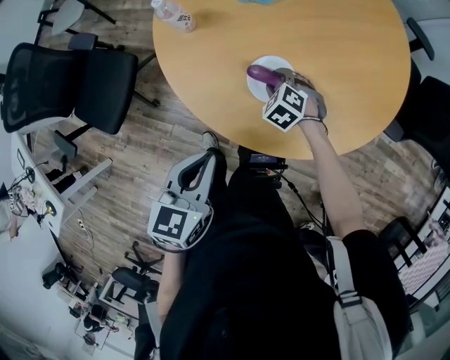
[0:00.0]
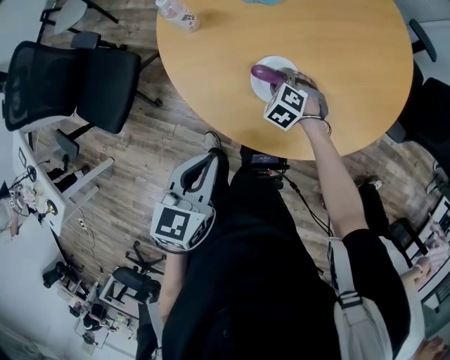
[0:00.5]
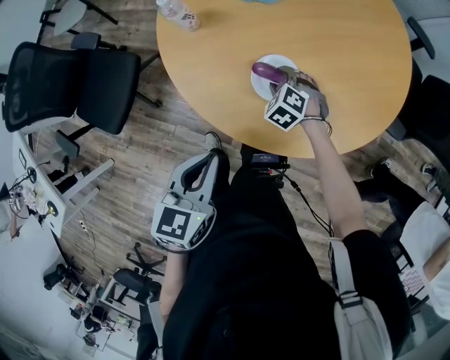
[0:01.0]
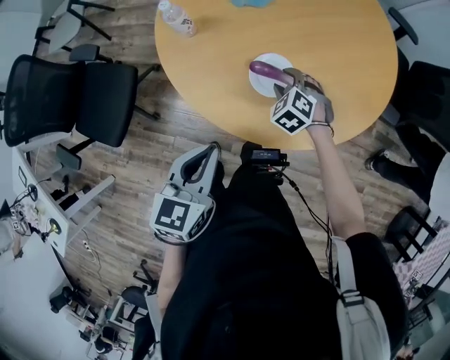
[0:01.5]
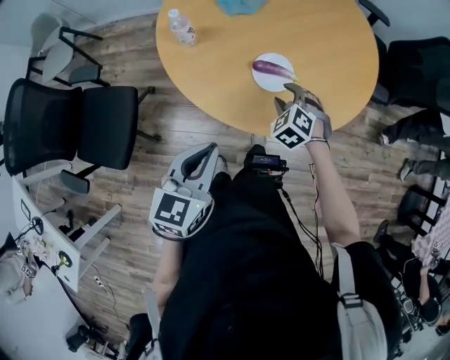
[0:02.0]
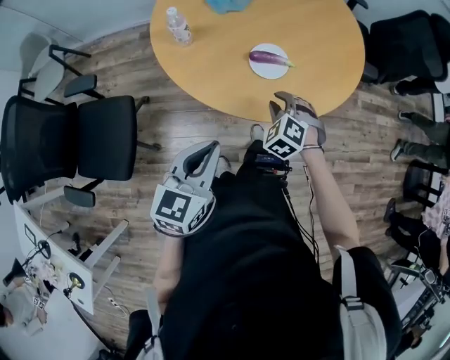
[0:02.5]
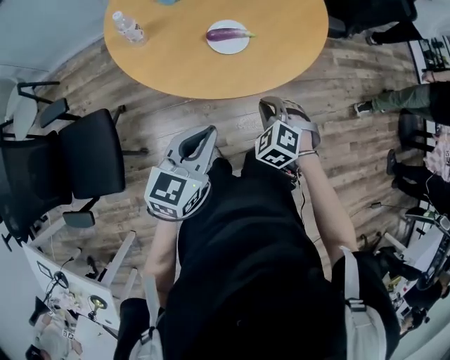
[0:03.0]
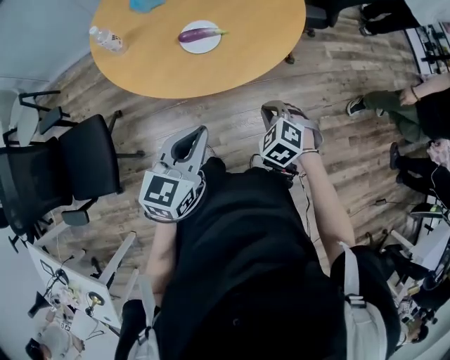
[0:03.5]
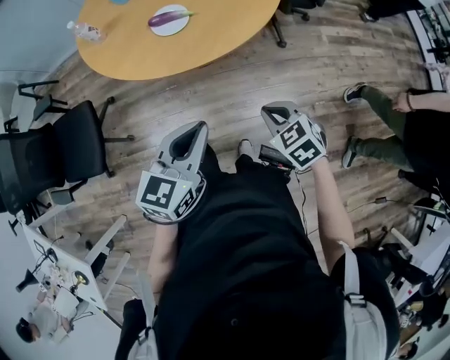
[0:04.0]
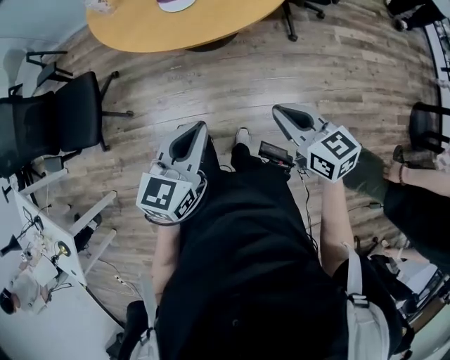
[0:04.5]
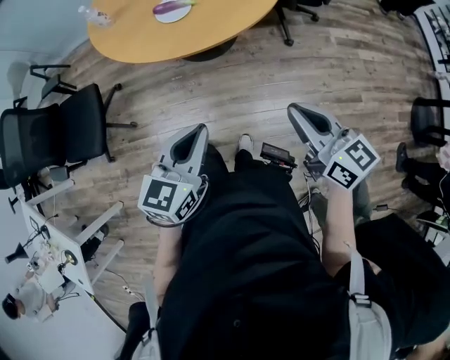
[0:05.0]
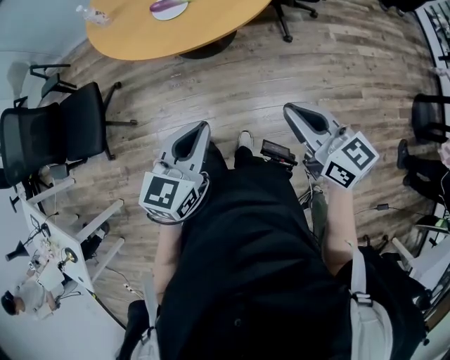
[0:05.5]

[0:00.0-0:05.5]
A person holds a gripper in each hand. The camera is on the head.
0:00.0 to 0:02.0: The left gripper changes place by approximately 10 cm, and rotates some 20 degrees, while the right gripper shifts by about 15 cm, and swivels some 20 degrees.
0:02.0 to 0:03.5: The right gripper travels backward and to the right by roughly 30 cm, and closes. The left gripper heads to the right and backward, covering about 15 cm, and turns by approximately 20 degrees.
0:03.5 to 0:05.5: The left gripper changes place by about 25 cm; the right gripper moves about 30 cm, and tilts its fingers some 50 degrees upward.

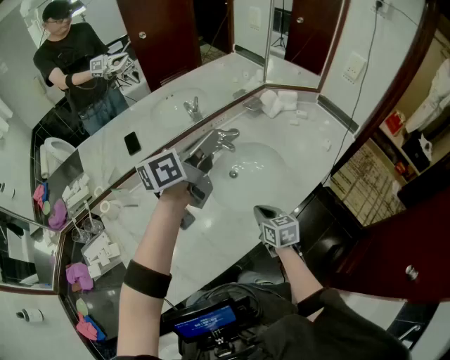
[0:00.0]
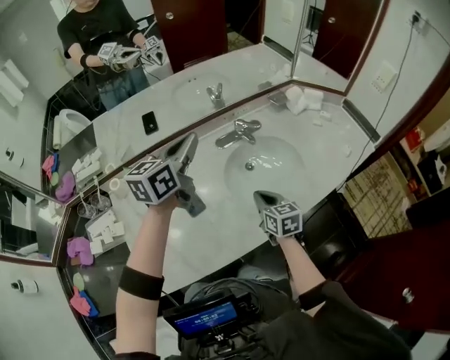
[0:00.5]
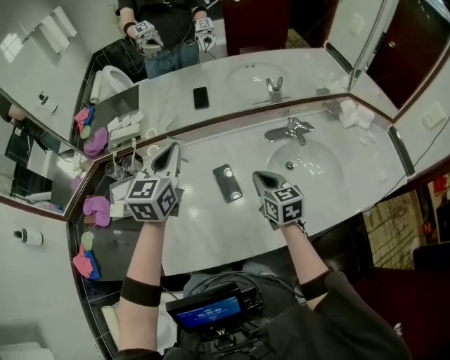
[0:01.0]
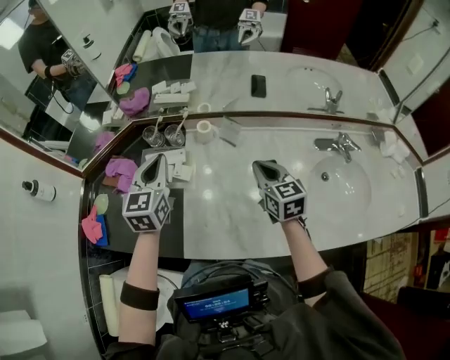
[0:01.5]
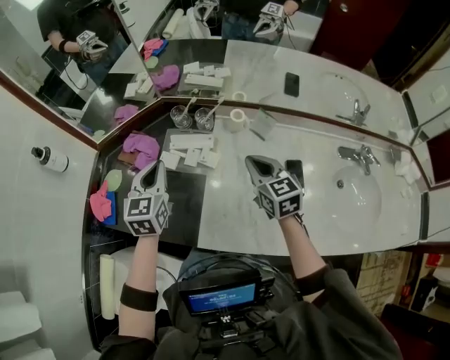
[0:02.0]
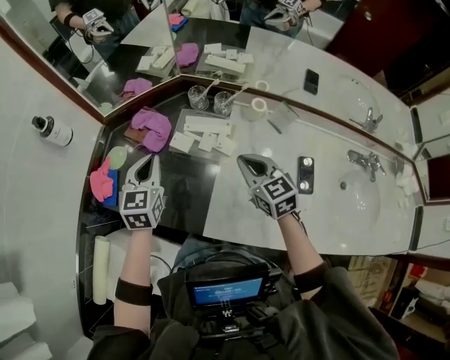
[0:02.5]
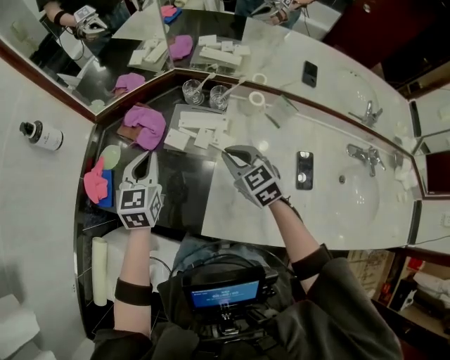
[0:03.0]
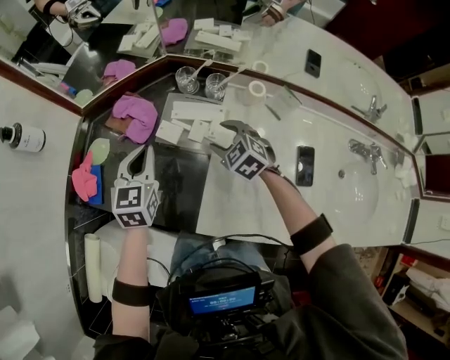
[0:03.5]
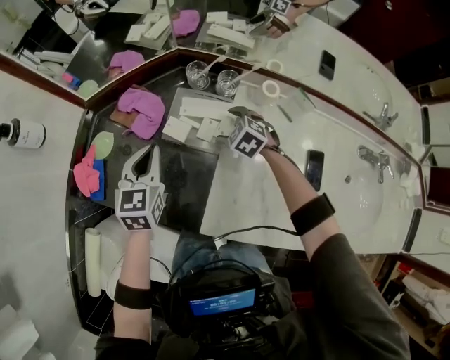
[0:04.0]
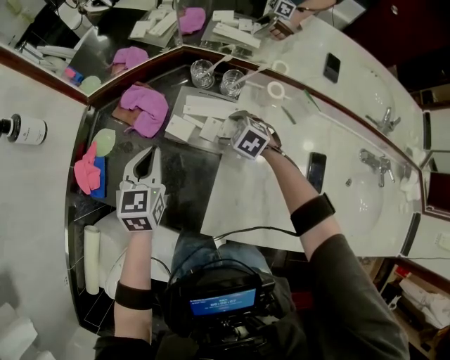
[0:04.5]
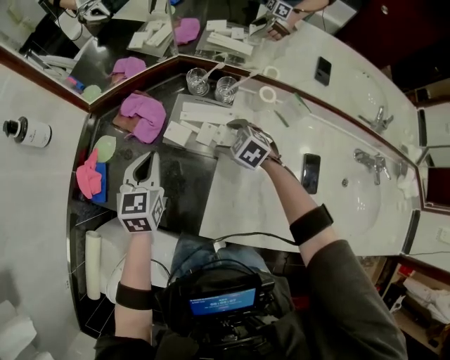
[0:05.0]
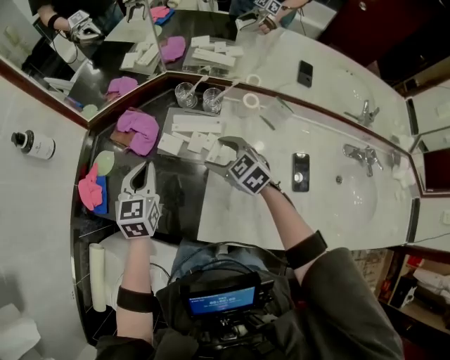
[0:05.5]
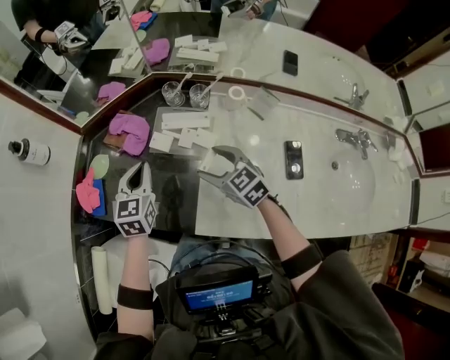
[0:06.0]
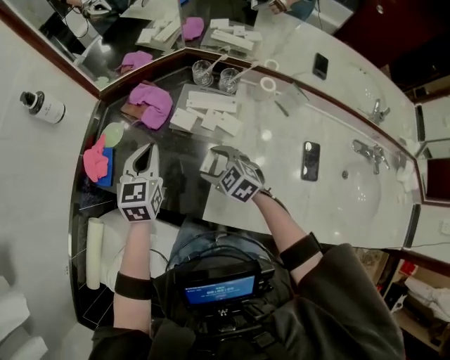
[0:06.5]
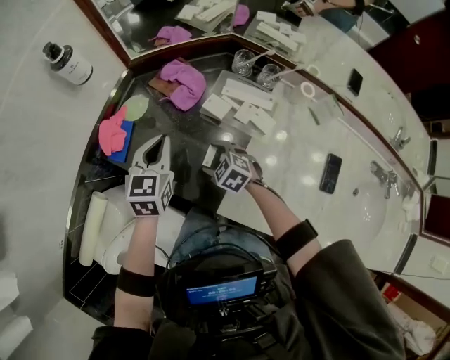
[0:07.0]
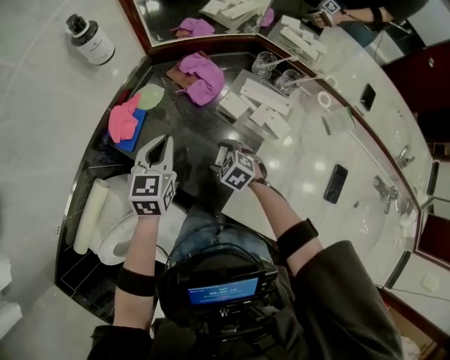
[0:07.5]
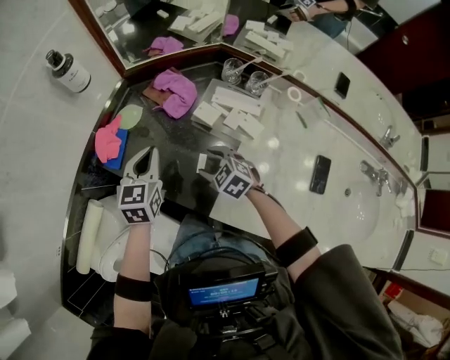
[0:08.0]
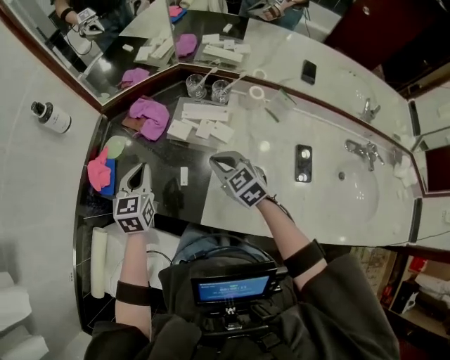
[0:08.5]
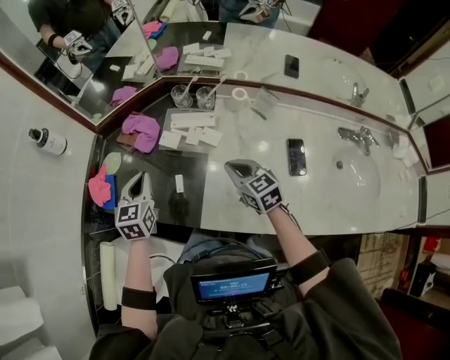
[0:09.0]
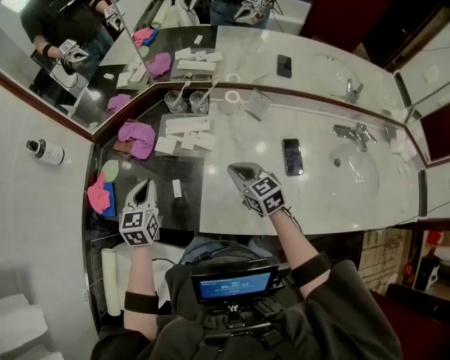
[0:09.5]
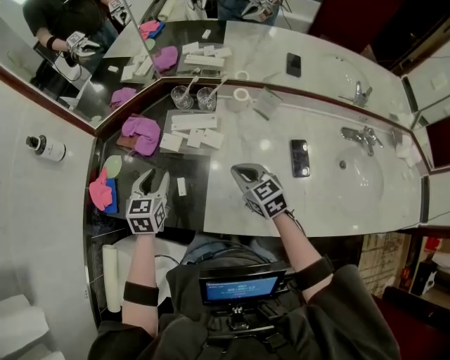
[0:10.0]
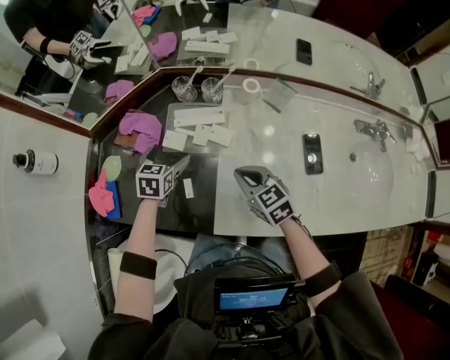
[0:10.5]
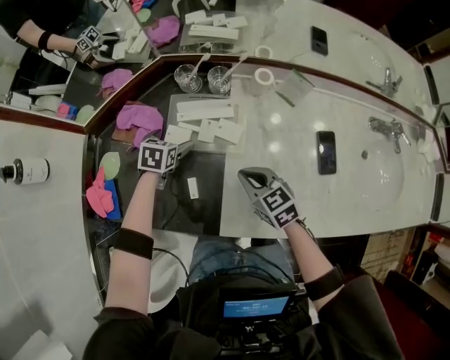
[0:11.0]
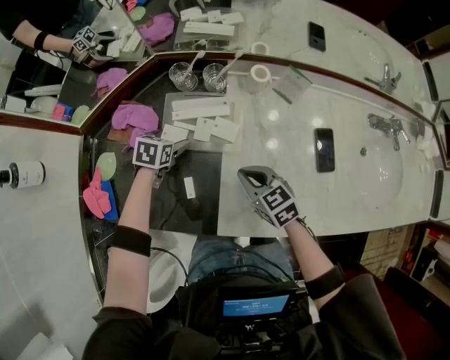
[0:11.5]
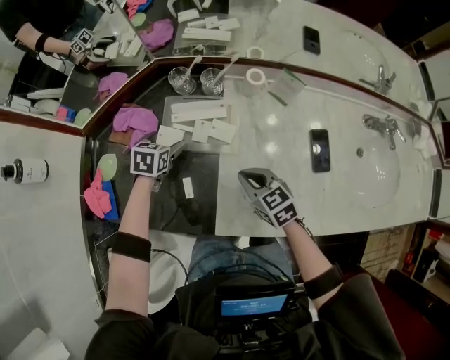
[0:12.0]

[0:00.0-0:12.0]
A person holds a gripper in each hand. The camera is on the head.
0:00.0 to 0:02.0: Both grippers are carried some 60 cm. The right gripper rotates some 50 degrees; the left gripper changes its angle by roughly 80 degrees.
0:02.0 to 0:04.0: The left gripper moves downward and to the left, approximately 10 cm. Meanwhile the right gripper heads downward, forward and to the left, covering about 30 cm, tilts its fingers roughly 40 degrees downward, and opens.
0:04.0 to 0:06.0: The right gripper goes about 20 cm upward and backward, and turns by roughly 30 degrees.
0:06.0 to 0:08.0: The left gripper goes about 15 cm to the left; the right gripper heads to the left and downward, covering about 20 cm, and turns by about 30 degrees.
0:08.0 to 0:10.0: The right gripper moves about 25 cm, turns by approximately 40 degrees, and closes its fingers; the left gripper shifts by some 10 cm.
0:10.0 to 0:12.0: The right gripper is displaced downward by some 10 cm. Meanwhile the left gripper shifts roughly 20 cm downward and forward, rotates about 30 degrees, and opens its fingers.

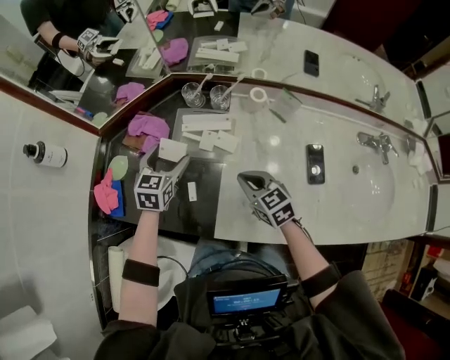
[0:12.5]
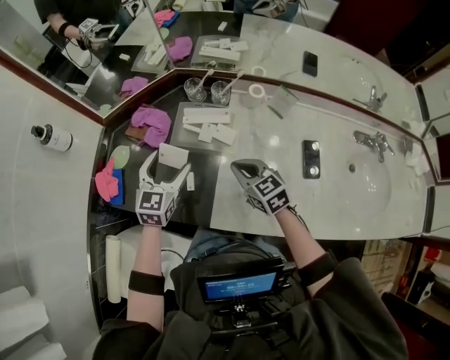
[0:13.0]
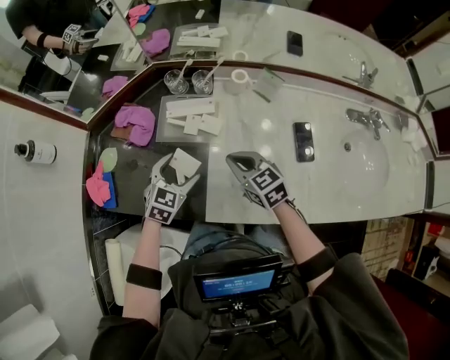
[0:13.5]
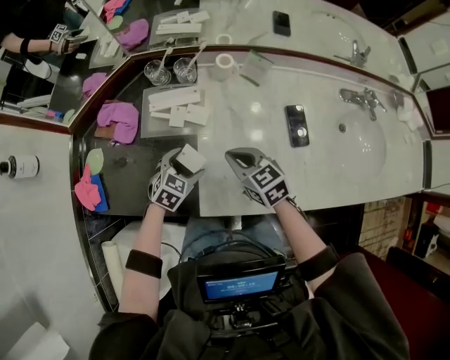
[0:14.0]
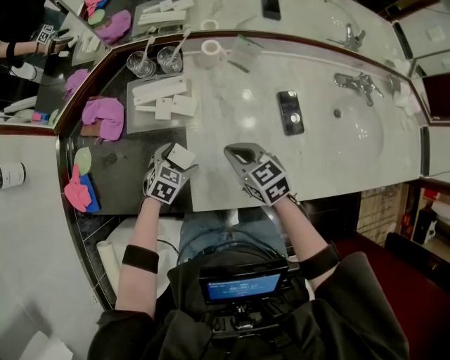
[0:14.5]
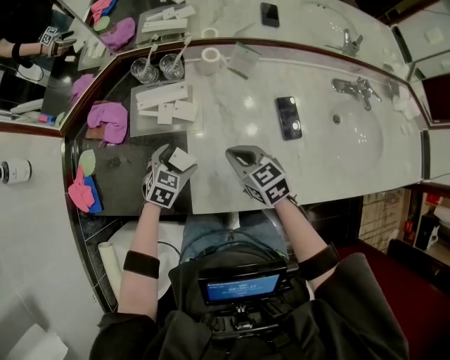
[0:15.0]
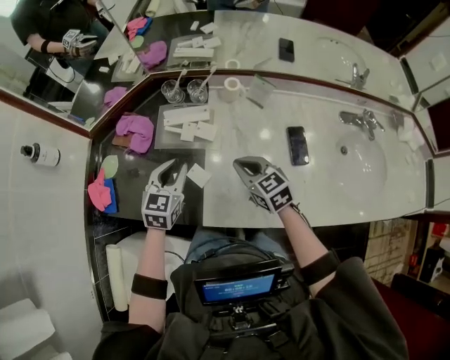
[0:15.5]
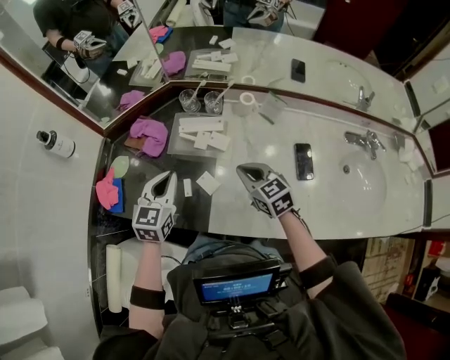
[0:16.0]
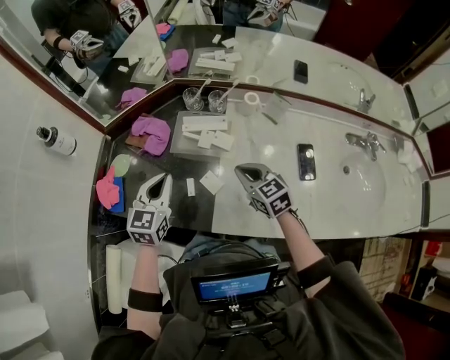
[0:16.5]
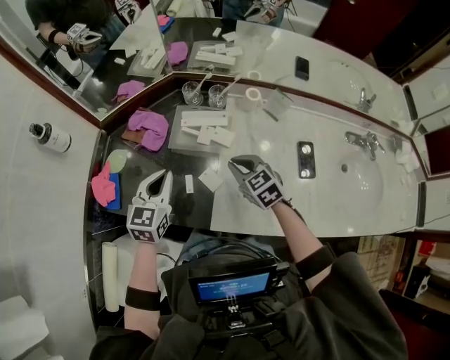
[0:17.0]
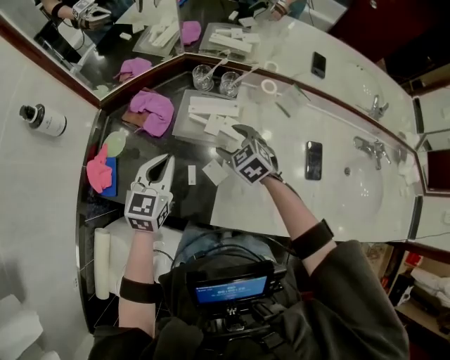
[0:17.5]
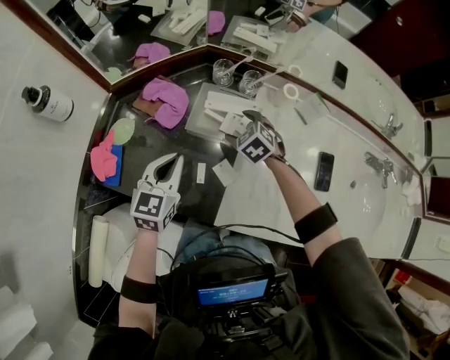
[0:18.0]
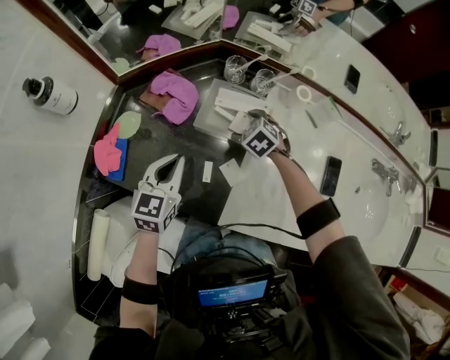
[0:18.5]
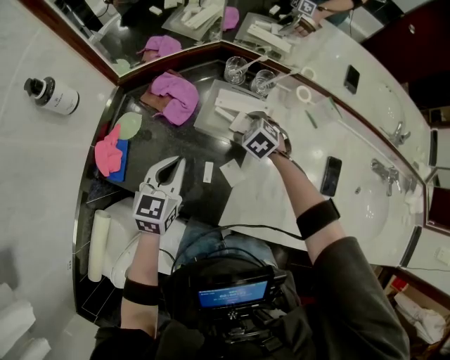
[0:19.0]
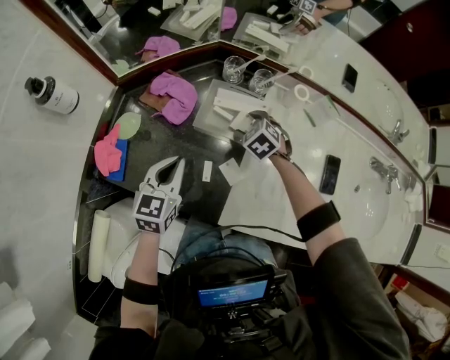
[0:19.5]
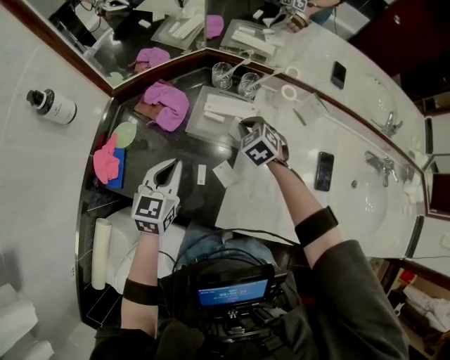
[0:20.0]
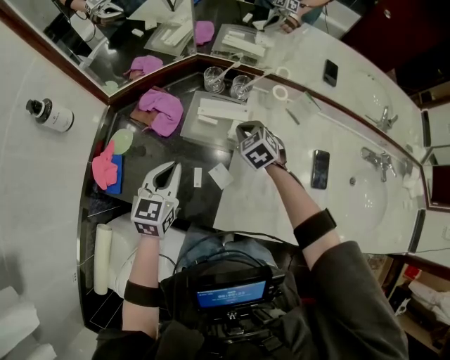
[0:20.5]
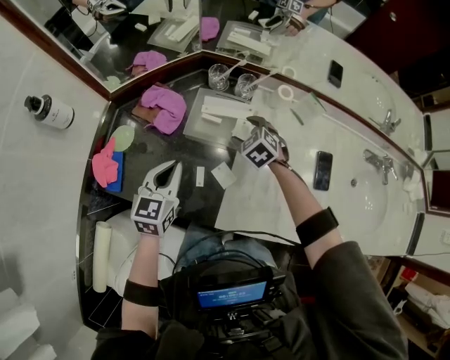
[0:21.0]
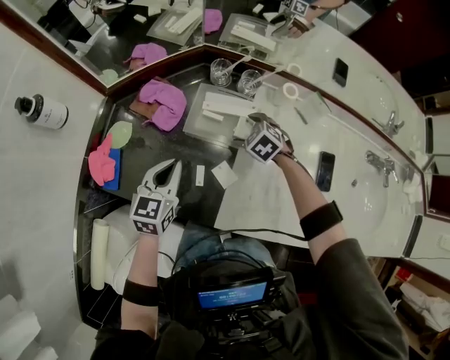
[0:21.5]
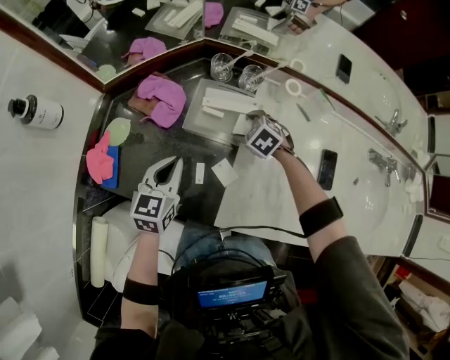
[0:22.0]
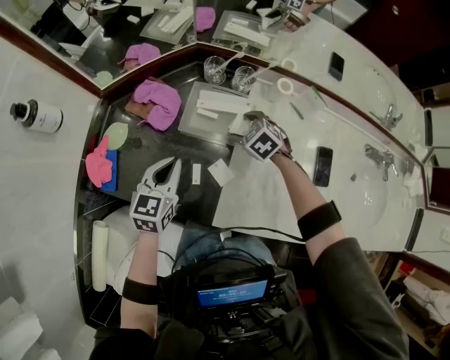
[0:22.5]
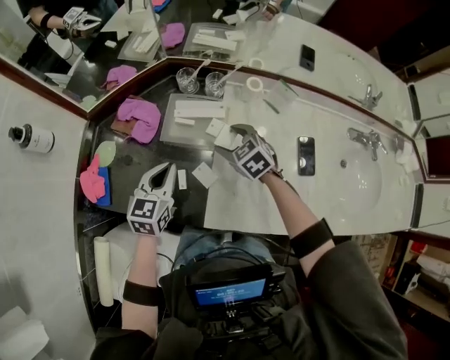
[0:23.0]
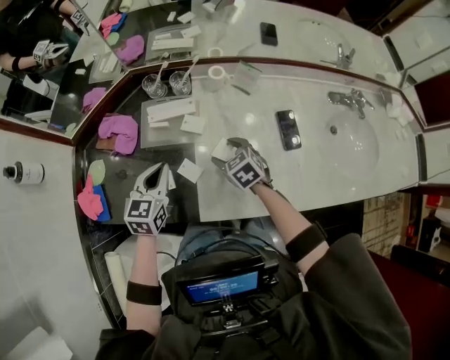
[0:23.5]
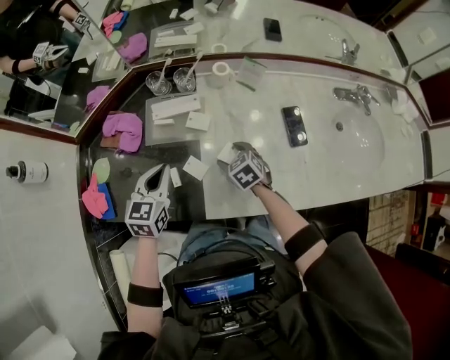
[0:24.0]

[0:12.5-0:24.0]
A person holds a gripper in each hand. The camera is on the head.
0:12.5 to 0:14.5: The left gripper is displaced downward, to the right and backward by roughly 25 cm, and swivels about 40 degrees. The right gripper is displaced to the right by about 5 cm.
0:14.5 to 0:16.5: The right gripper shifts about 10 cm upward and to the left; the left gripper travels upward and to the left by roughly 25 cm, angles its fingers upward, by approximately 30 degrees, and closes its fingers.
0:16.5 to 0:18.5: The right gripper heads forward, downward and to the left, covering approximately 25 cm, angles its fingers downward, by about 30 degrees, and opens its fingers, while the left gripper is displaced downward by about 5 cm.
0:18.5 to 0:20.0: The right gripper shifts approximately 5 cm upward, and closes its fingers.
0:20.0 to 0:22.0: The right gripper heads downward, covering about 5 cm, and opens up.
0:22.0 to 0:24.0: The left gripper heads to the right, covering about 10 cm, while the right gripper heads backward and to the right, covering roughly 20 cm, and swivels approximately 40 degrees.
